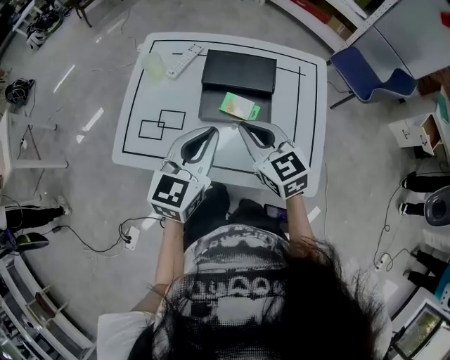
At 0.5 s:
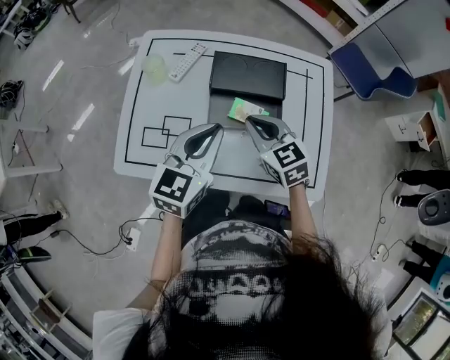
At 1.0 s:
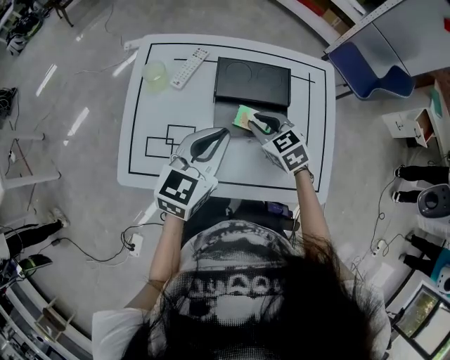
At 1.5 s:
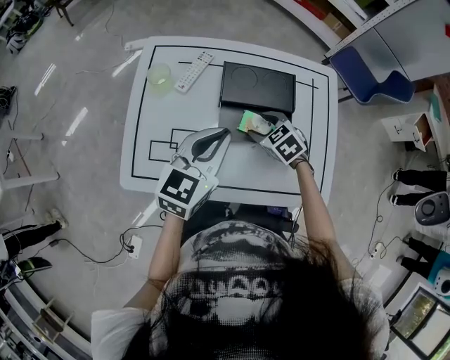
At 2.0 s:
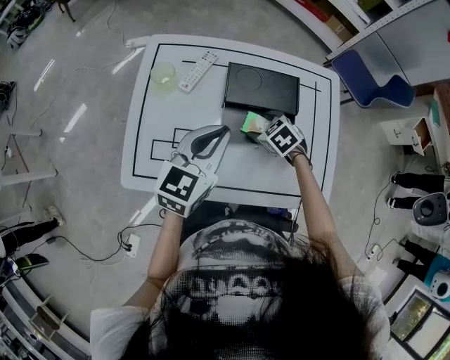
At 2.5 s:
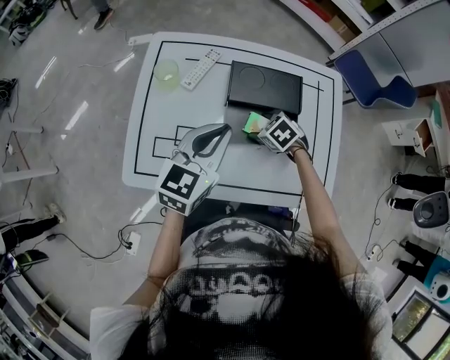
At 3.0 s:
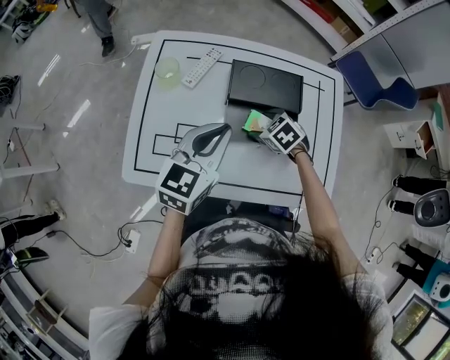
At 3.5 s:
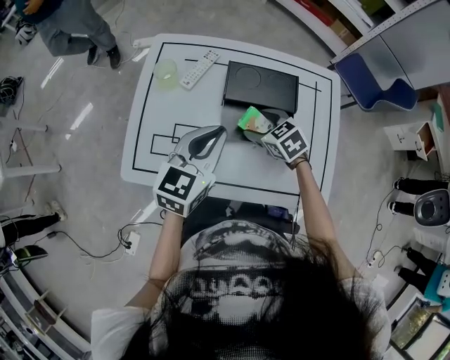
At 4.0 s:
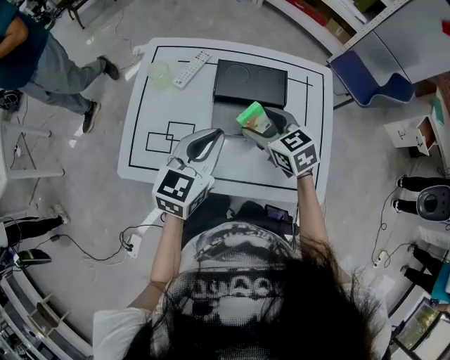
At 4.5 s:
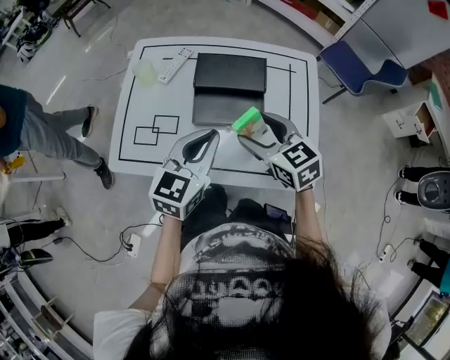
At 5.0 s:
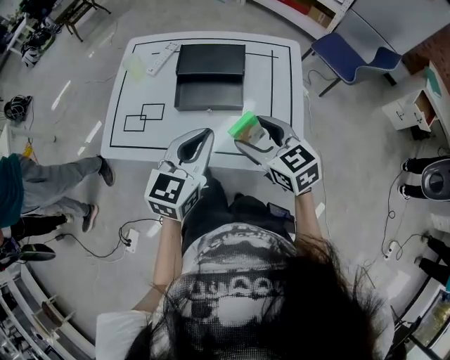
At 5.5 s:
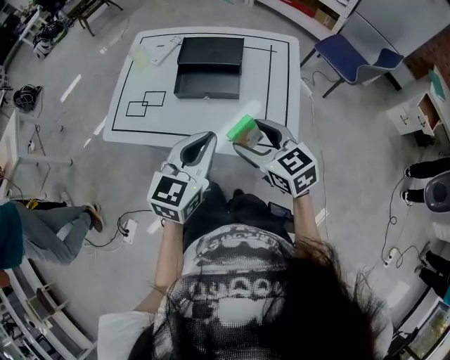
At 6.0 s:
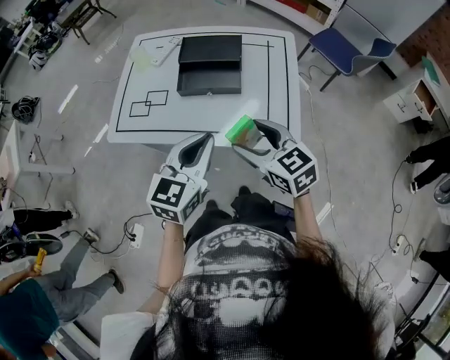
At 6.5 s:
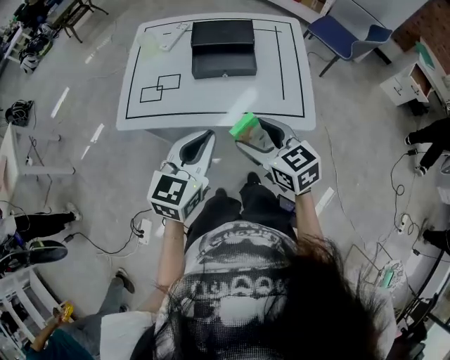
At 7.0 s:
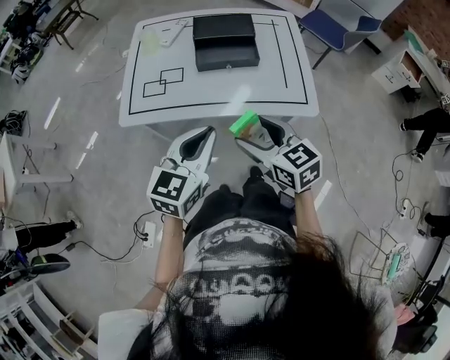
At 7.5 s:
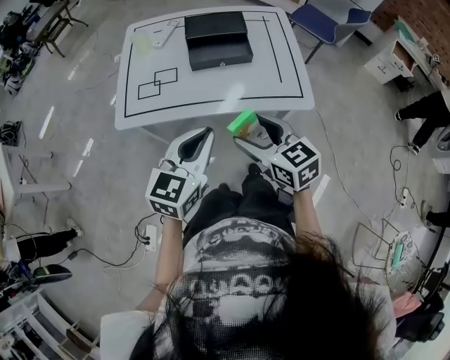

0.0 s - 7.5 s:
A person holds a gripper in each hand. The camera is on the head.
0.0 s - 2.0 s: The right gripper moves downward and forward, some 25 cm, tips its fingers downward by about 40 degrees, and opens, while the left gripper is displaced forward and to the left by some 15 cm.
2.0 s - 4.0 s: The left gripper shifts approximately 5 cm backward. The right gripper travels upward by about 15 cm, and turns by about 30 degrees.
4.0 s - 5.5 s: Both grippers travel together backward and to the right, about 25 cm.
5.5 s - 7.5 s: The grippers both shift to the left and backward by about 20 cm.

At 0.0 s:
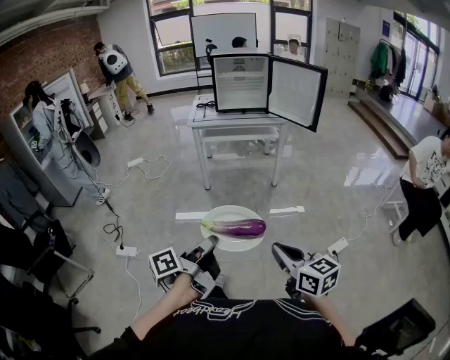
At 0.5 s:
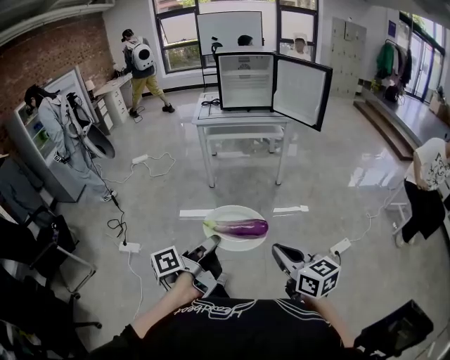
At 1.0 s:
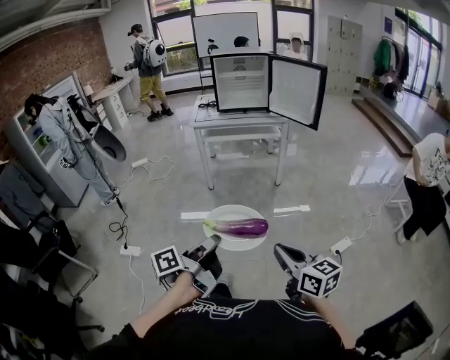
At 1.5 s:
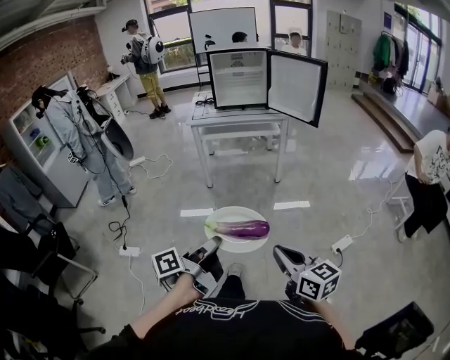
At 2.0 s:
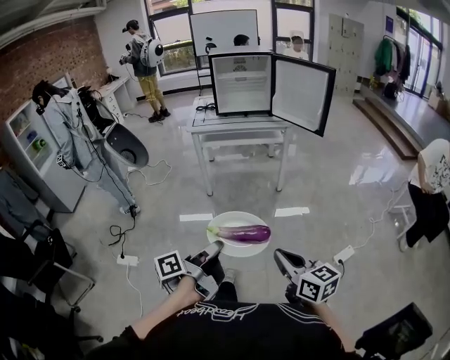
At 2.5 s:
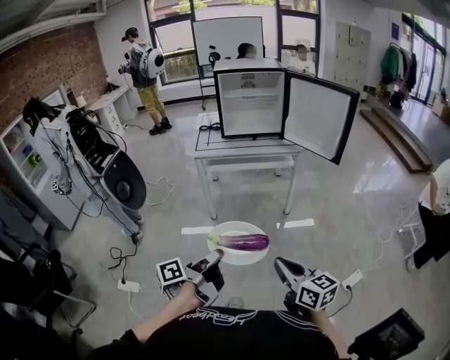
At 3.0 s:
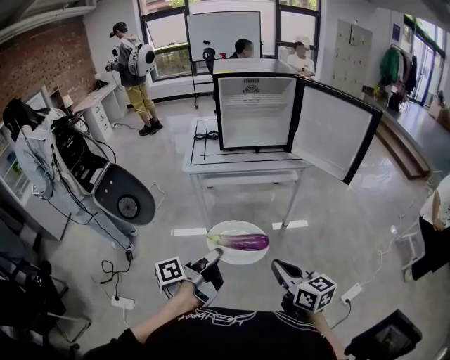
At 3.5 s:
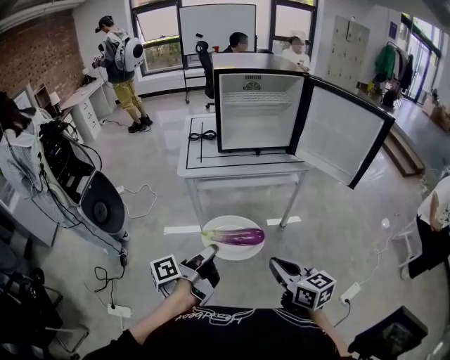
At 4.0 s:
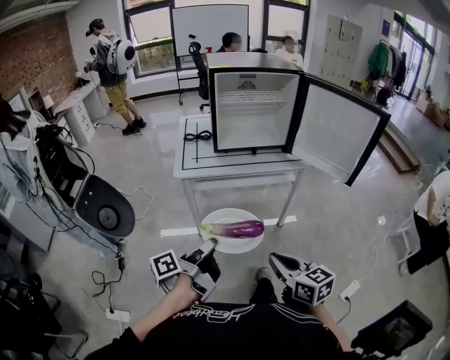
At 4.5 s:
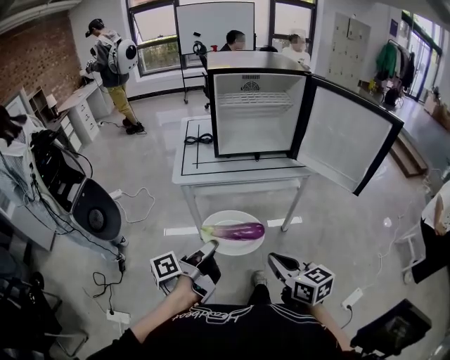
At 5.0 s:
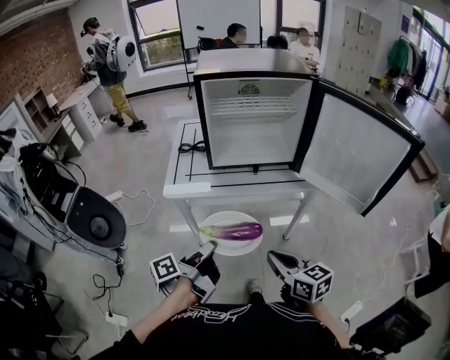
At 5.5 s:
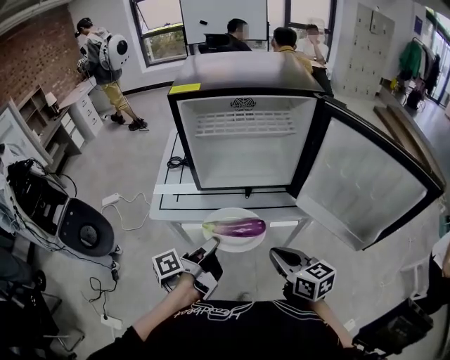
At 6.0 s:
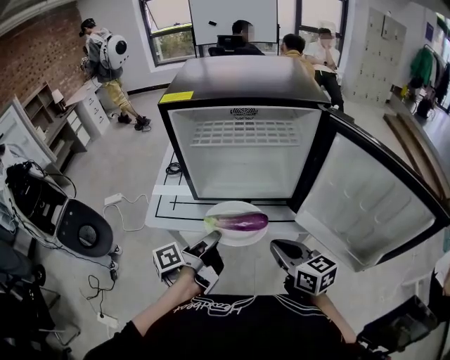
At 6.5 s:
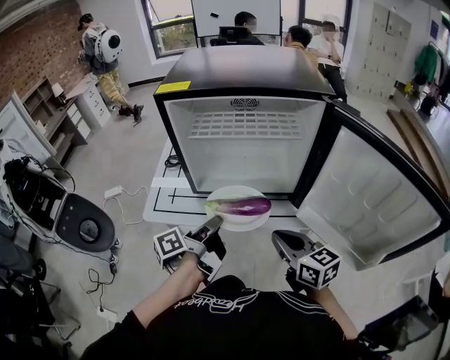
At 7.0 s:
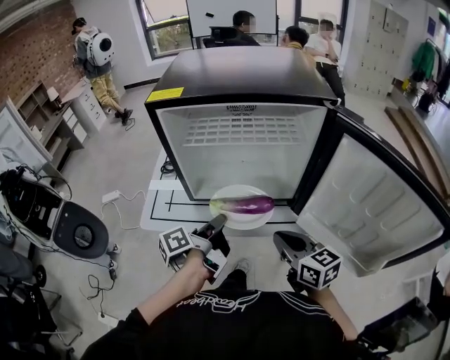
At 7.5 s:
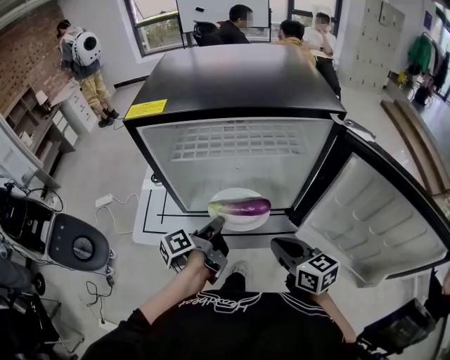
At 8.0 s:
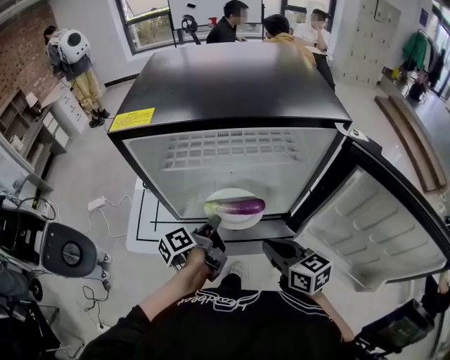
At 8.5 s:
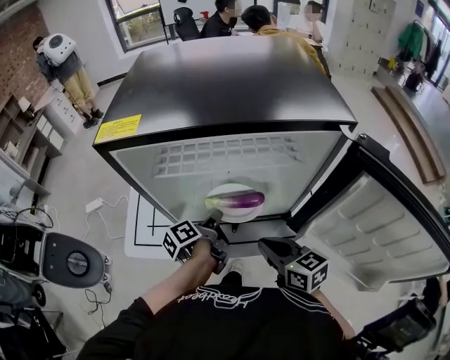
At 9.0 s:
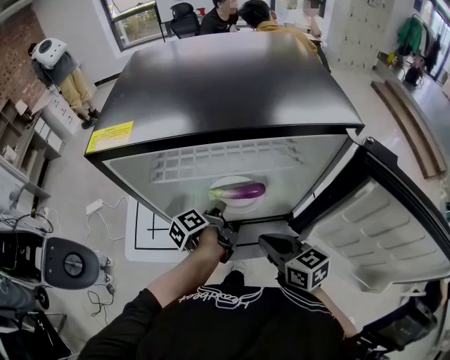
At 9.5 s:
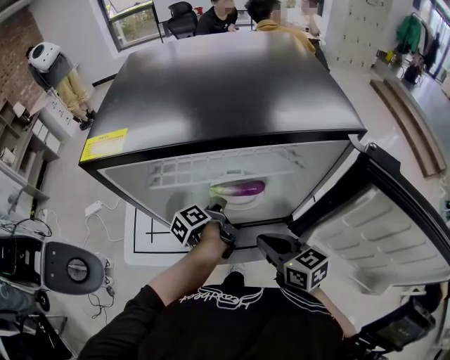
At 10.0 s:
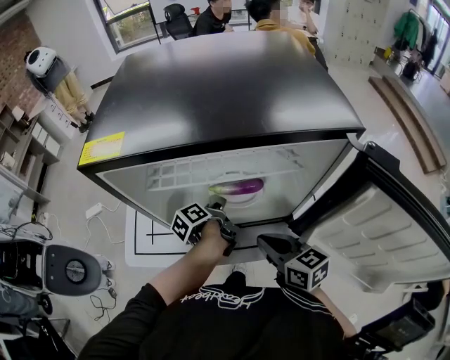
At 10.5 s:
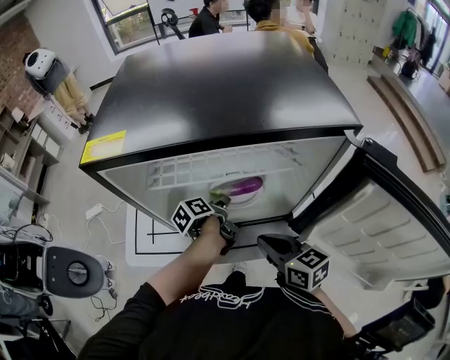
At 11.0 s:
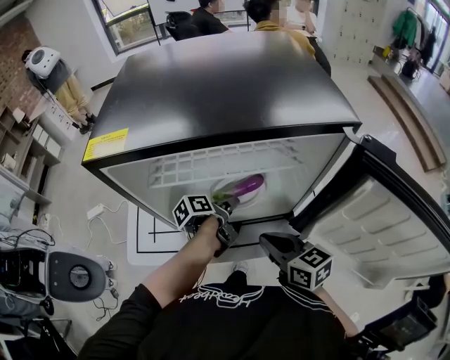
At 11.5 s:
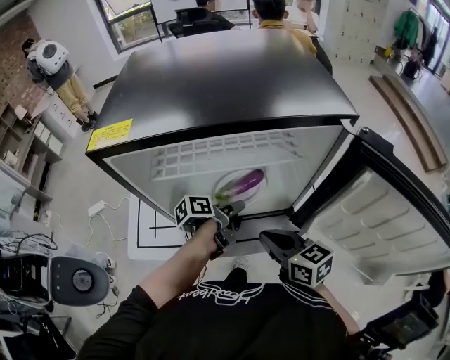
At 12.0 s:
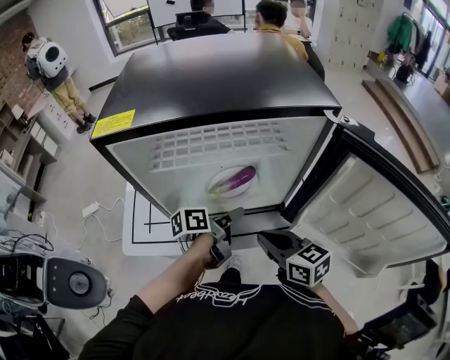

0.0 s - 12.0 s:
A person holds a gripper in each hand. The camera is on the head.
0.0 s - 2.0 s: The right gripper moves approximately 10 cm.
2.0 s - 4.0 s: The right gripper ends up roughly 50 cm from where it was.
4.0 s - 6.0 s: The right gripper moves roughly 40 cm.
6.0 s - 8.0 s: The right gripper shifts by about 10 cm.
8.0 s - 10.0 s: The right gripper shifts by some 5 cm.
10.0 s - 12.0 s: The right gripper moves approximately 5 cm.

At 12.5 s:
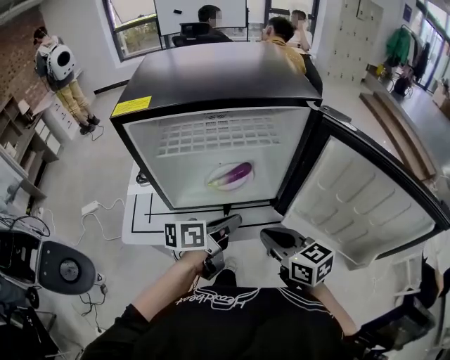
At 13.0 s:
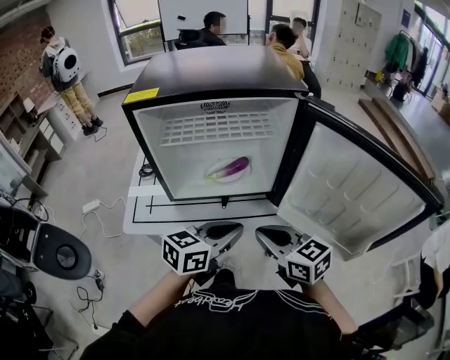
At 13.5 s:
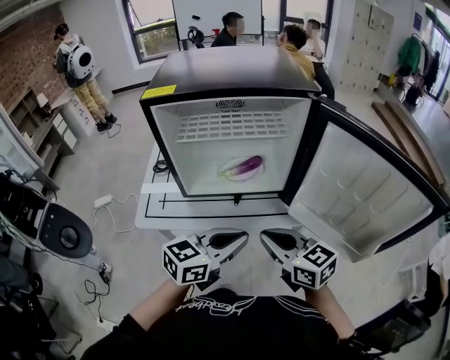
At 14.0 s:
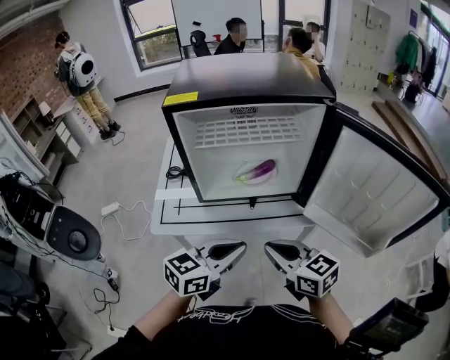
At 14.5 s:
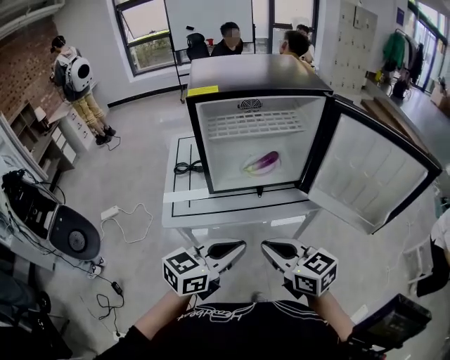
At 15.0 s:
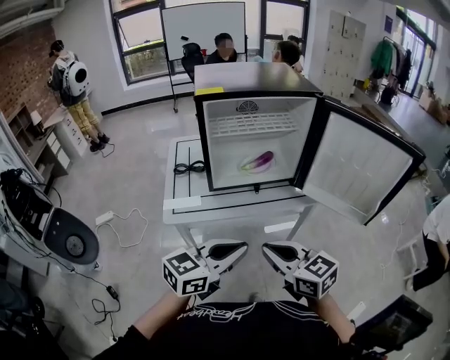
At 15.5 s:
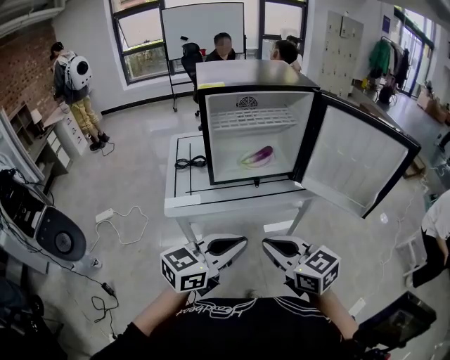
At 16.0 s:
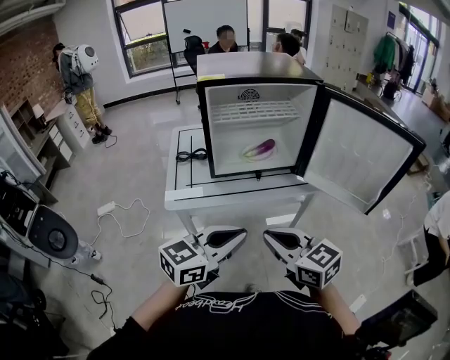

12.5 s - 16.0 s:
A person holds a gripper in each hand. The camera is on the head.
12.5 s - 14.5 s: The right gripper changes place by about 20 cm.
14.5 s - 16.0 s: The right gripper ends up some 10 cm from where it was.

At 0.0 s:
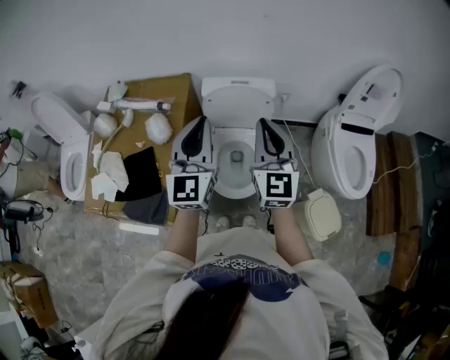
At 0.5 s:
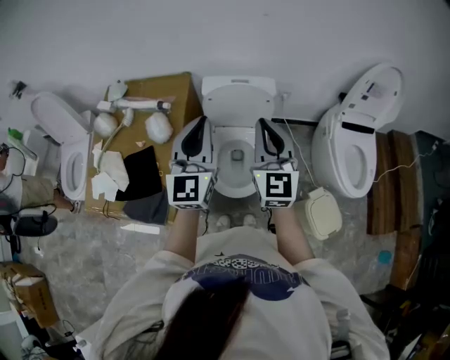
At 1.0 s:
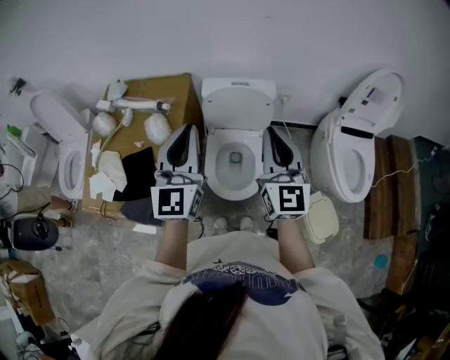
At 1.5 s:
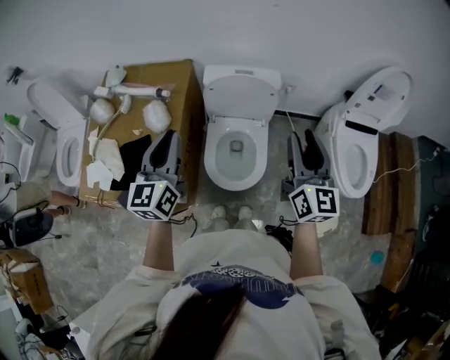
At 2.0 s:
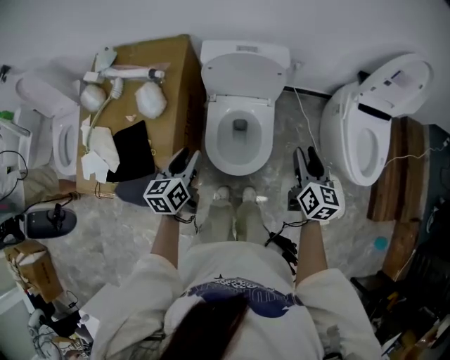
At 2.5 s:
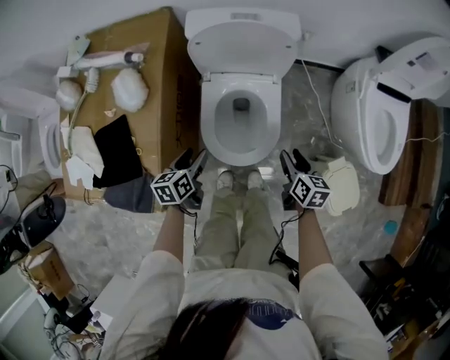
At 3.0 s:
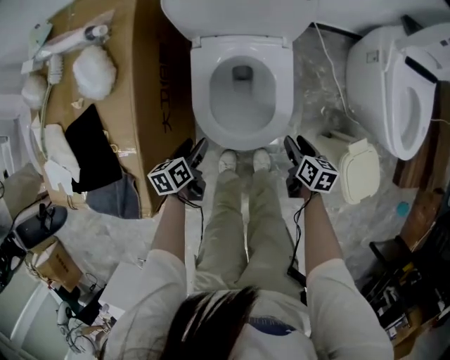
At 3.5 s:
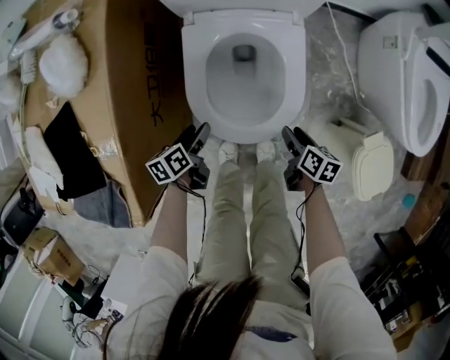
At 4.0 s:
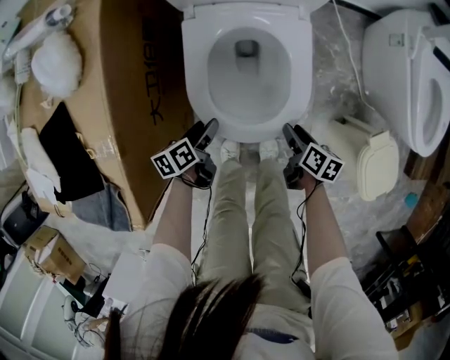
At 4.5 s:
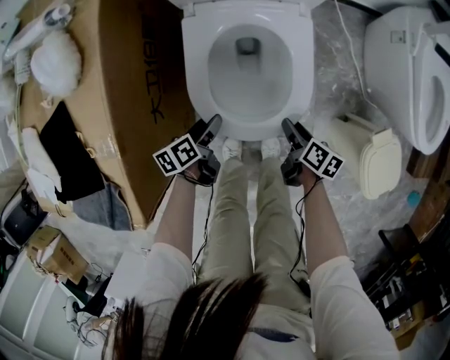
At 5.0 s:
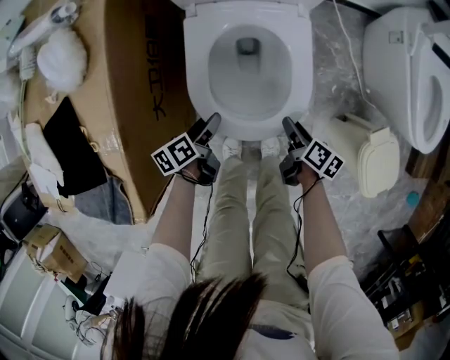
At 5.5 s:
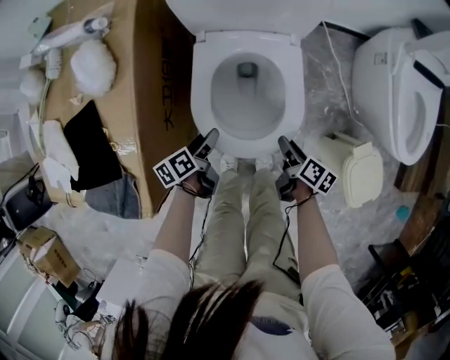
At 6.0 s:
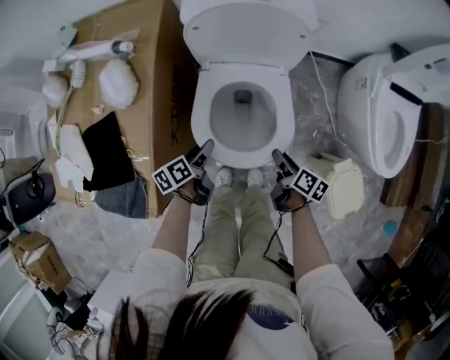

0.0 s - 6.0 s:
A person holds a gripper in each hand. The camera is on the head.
0.0 s - 2.0 s: The left gripper goes some 25 cm downward, angles its fingers downward, by some 40 degrees, and opens. The right gripper heads downward and to the right, covering approximately 25 cm, changes its angle by about 40 degrees, and opens its fingers.
2.0 s - 4.0 s: The grippers both shift downward by some 50 cm. The left gripper changes its angle by approximately 40 degrees, and opens. The right gripper swivels some 40 degrees.
4.0 s - 6.0 s: Both grippers move upward, roughly 15 cm.
